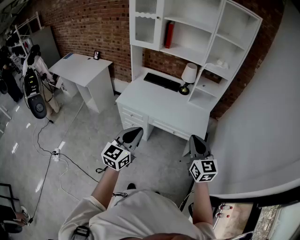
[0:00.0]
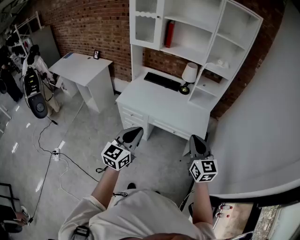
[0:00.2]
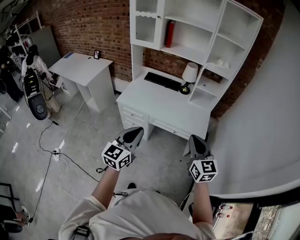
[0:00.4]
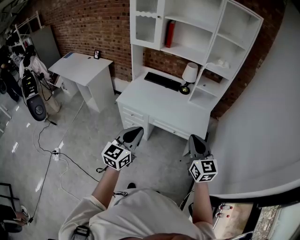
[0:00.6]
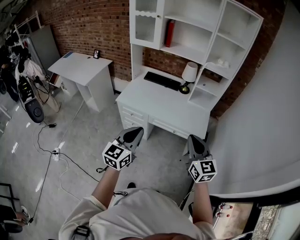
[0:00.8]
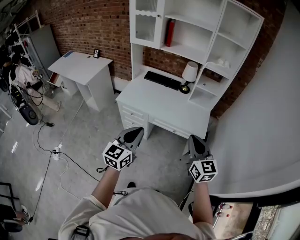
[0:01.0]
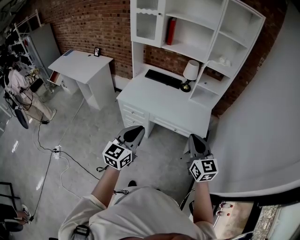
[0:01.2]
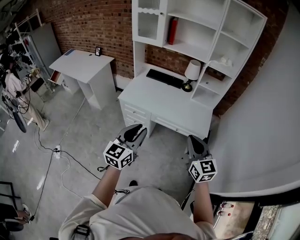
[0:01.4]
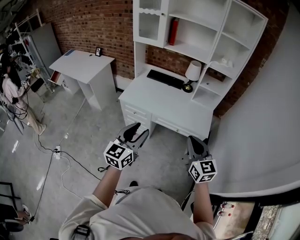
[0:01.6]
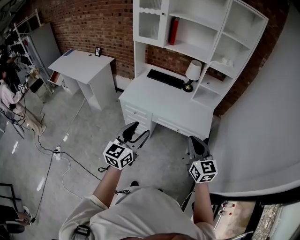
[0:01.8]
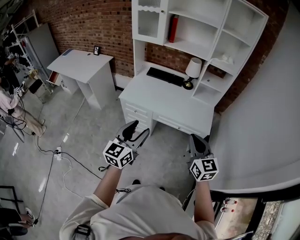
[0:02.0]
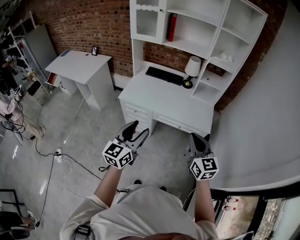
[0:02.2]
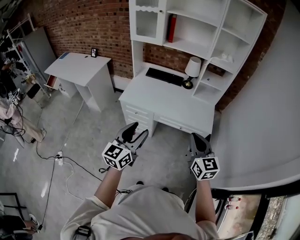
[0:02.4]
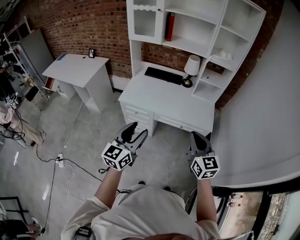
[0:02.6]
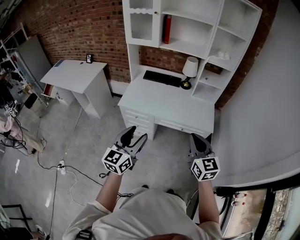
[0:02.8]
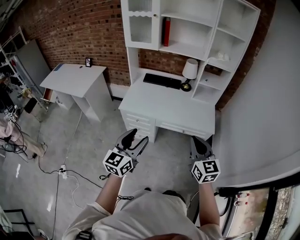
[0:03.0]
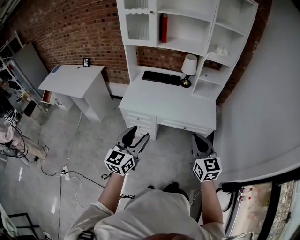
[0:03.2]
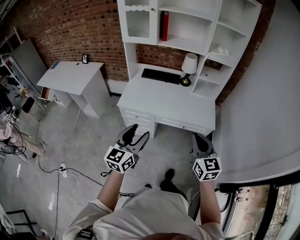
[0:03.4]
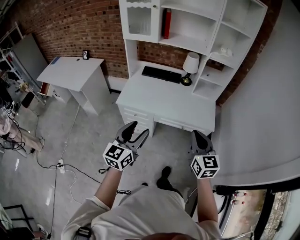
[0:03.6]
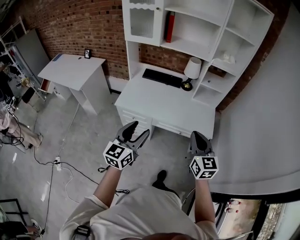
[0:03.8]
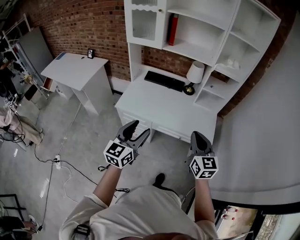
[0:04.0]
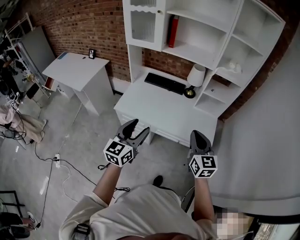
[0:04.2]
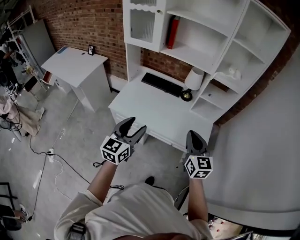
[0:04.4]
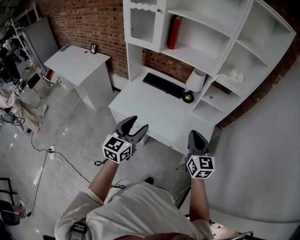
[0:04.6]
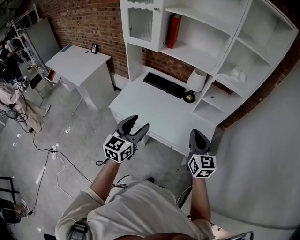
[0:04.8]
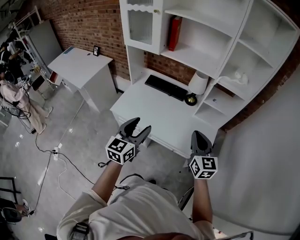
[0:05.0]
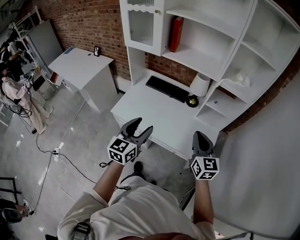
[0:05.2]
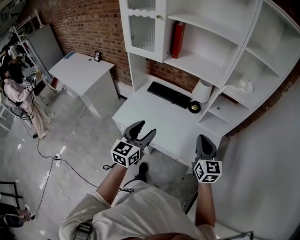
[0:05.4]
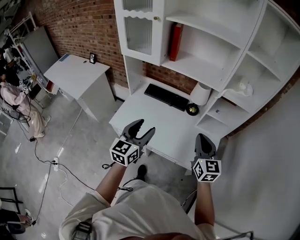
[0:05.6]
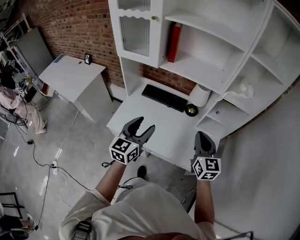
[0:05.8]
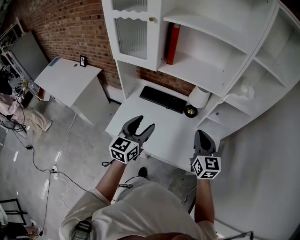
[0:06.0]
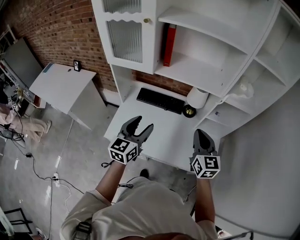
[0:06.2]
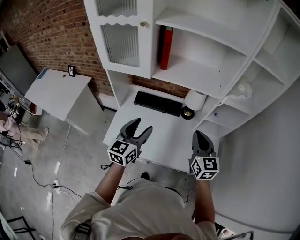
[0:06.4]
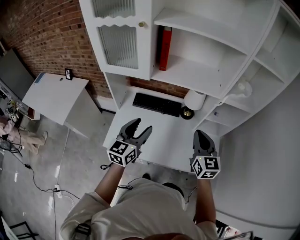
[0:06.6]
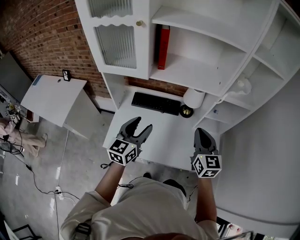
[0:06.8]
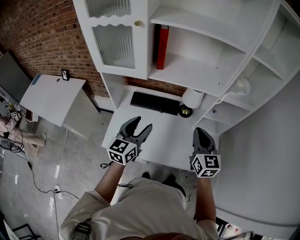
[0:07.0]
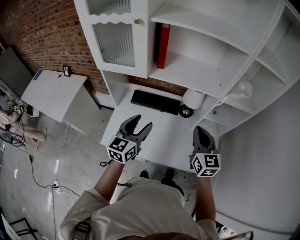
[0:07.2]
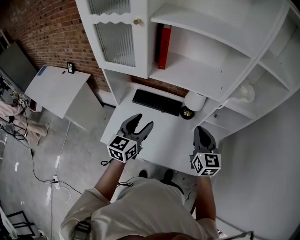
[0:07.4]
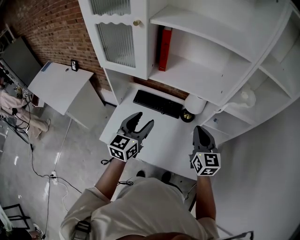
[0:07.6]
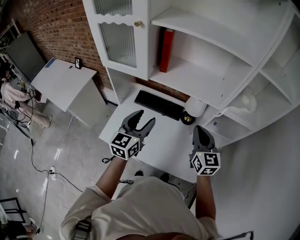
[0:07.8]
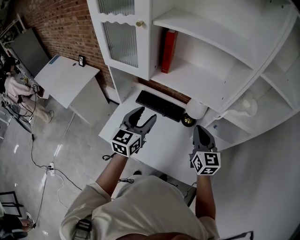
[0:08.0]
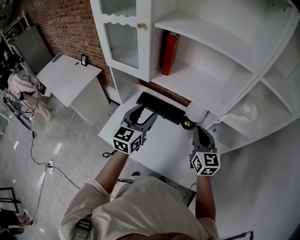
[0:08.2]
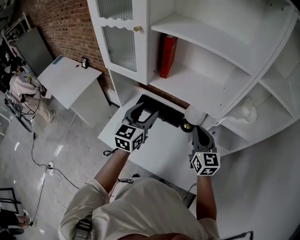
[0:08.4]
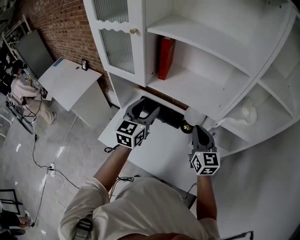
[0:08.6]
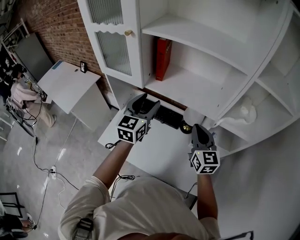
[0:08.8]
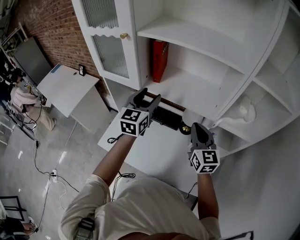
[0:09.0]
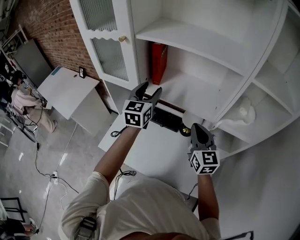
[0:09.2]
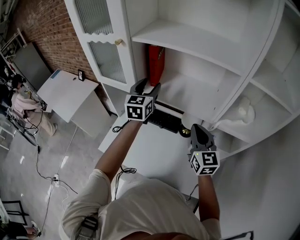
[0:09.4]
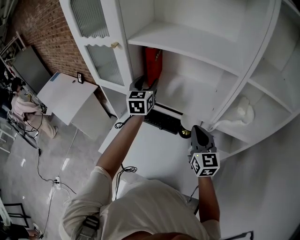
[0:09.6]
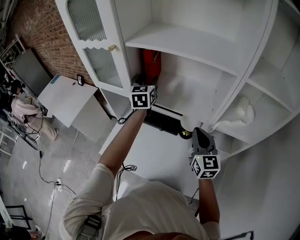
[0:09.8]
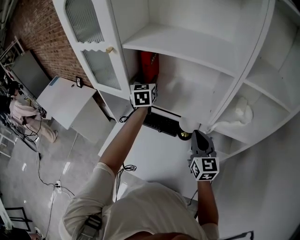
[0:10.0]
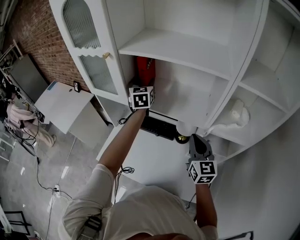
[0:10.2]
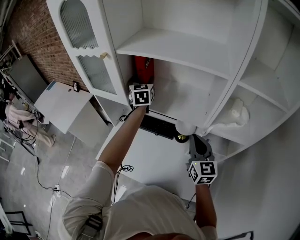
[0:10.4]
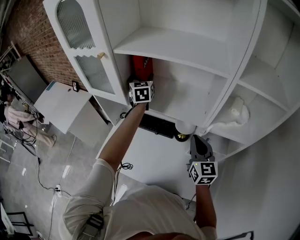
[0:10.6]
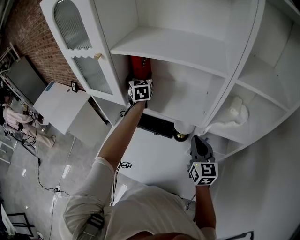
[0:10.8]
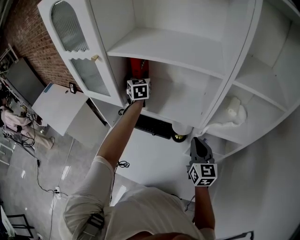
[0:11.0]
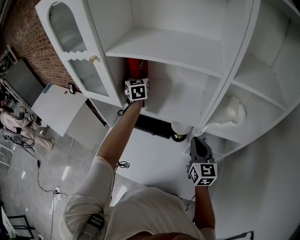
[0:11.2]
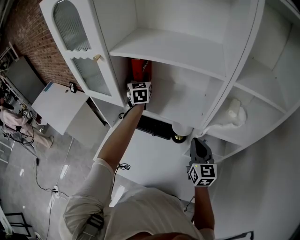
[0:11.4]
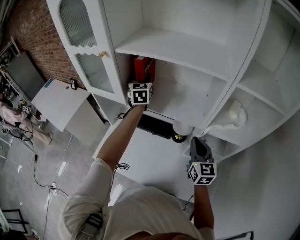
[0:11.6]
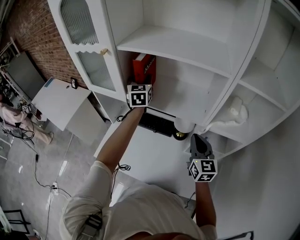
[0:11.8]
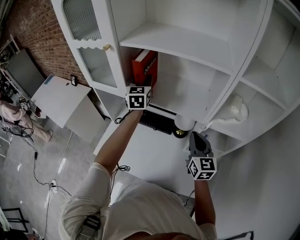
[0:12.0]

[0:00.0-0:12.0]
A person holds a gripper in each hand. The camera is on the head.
0.0 to 1.6 s: The left gripper opens up.
1.6 to 3.0 s: Both grippers move to the left, about 5 cm.
3.0 to 4.4 s: The two grippers go roughly 20 cm forward.
4.4 to 6.0 s: Both grippers travel together forward, some 25 cm.
6.0 to 7.6 s: The grippers both shift forward by approximately 10 cm.
7.6 to 9.0 s: The left gripper moves forward and upward, roughly 15 cm, while the right gripper moves forward, some 10 cm.
9.0 to 10.4 s: The left gripper heads forward, covering roughly 20 cm.
10.4 to 12.0 s: The left gripper closes its fingers.

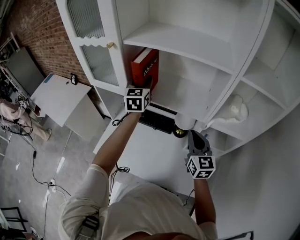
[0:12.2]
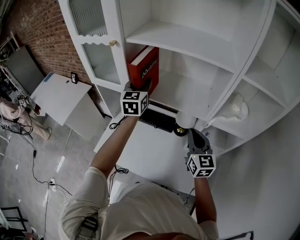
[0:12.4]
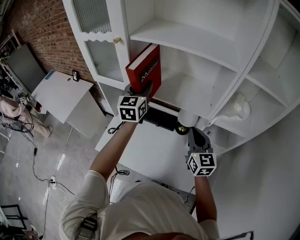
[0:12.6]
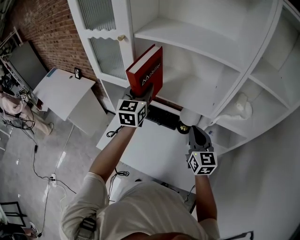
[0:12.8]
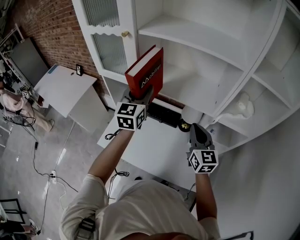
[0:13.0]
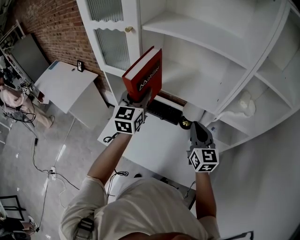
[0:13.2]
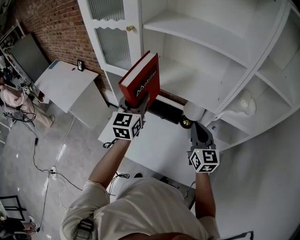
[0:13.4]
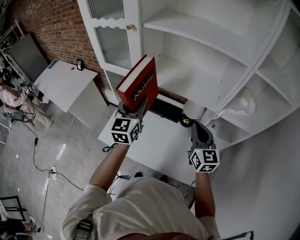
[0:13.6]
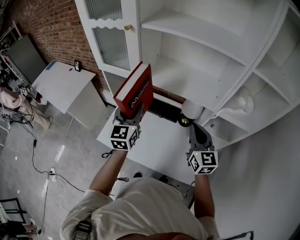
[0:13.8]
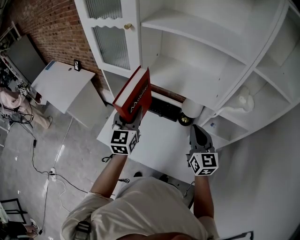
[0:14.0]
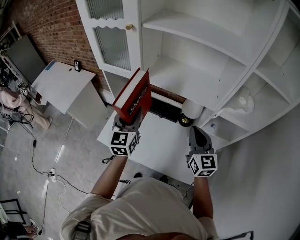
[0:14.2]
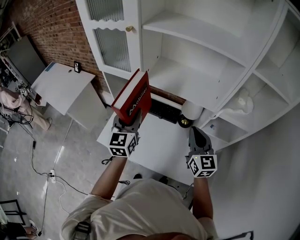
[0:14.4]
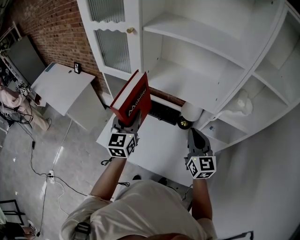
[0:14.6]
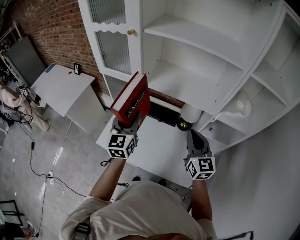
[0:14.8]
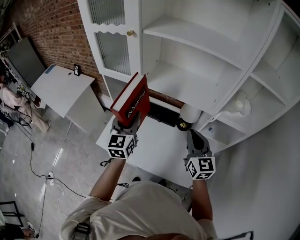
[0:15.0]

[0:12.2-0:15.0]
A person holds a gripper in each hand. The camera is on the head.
12.2 to 13.6 s: The right gripper ends up some 5 cm from where it was; the left gripper travels backward by approximately 15 cm.
13.6 to 15.0 s: The left gripper changes place by approximately 5 cm.

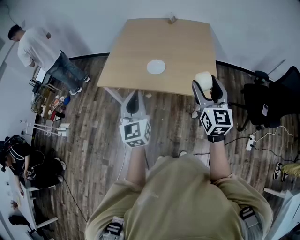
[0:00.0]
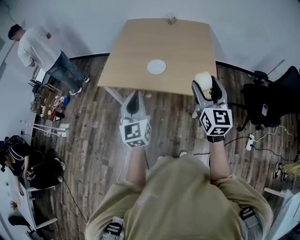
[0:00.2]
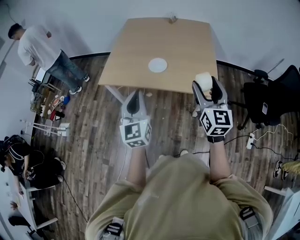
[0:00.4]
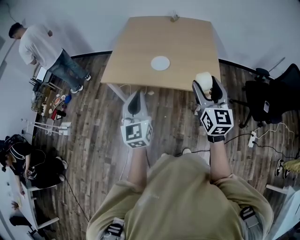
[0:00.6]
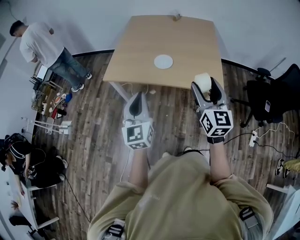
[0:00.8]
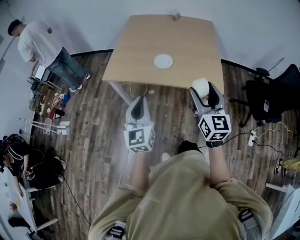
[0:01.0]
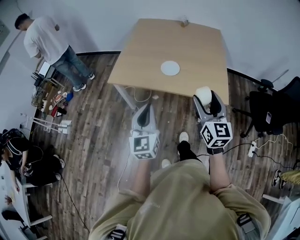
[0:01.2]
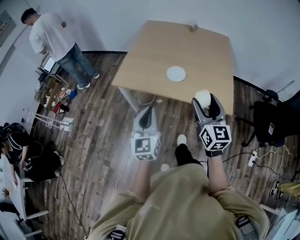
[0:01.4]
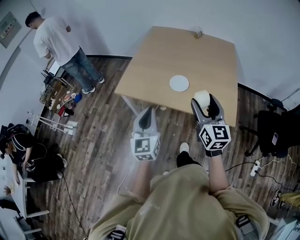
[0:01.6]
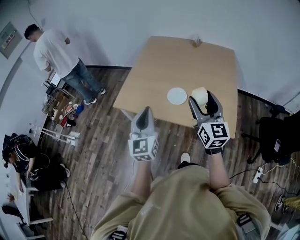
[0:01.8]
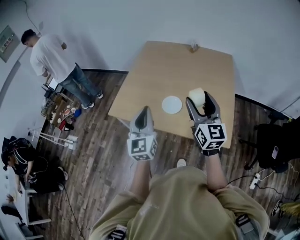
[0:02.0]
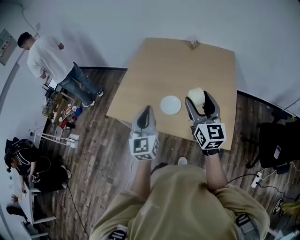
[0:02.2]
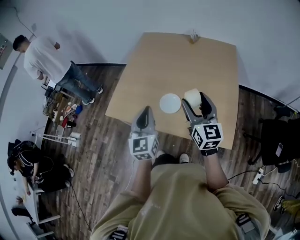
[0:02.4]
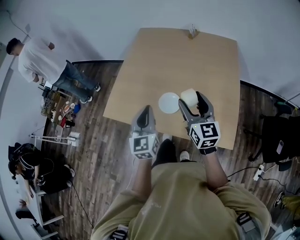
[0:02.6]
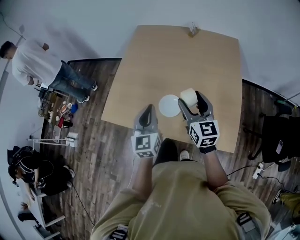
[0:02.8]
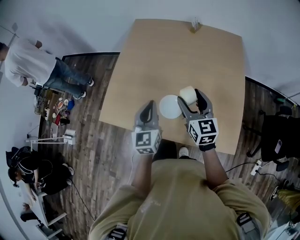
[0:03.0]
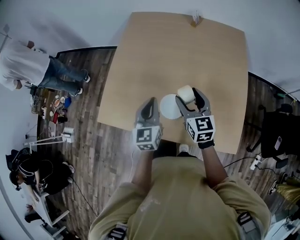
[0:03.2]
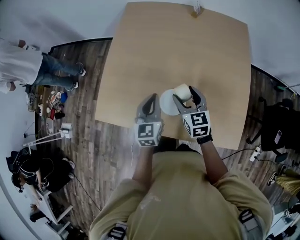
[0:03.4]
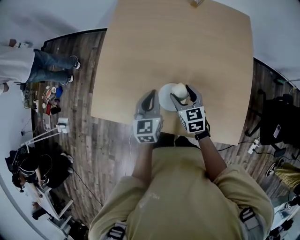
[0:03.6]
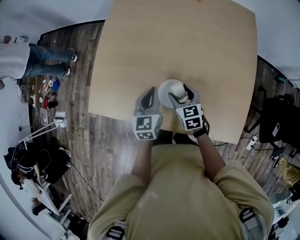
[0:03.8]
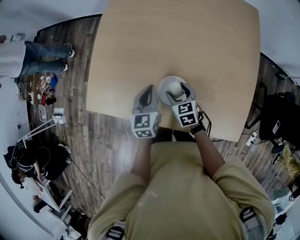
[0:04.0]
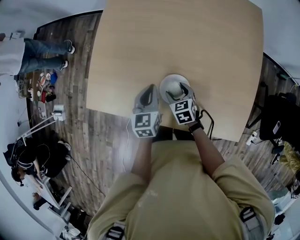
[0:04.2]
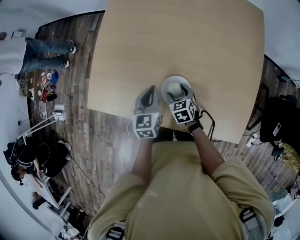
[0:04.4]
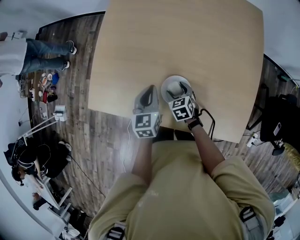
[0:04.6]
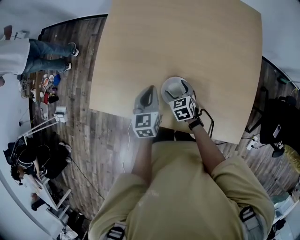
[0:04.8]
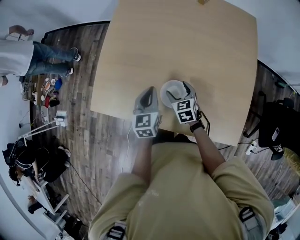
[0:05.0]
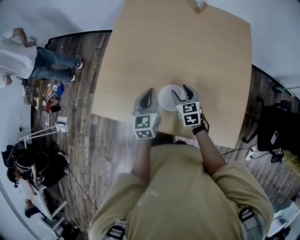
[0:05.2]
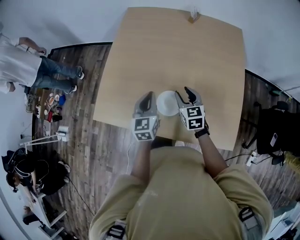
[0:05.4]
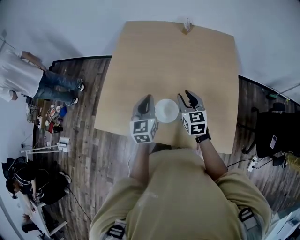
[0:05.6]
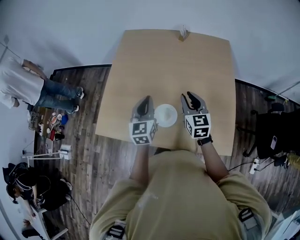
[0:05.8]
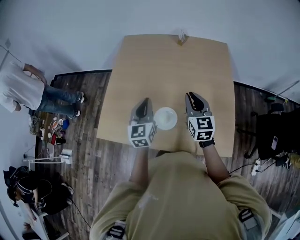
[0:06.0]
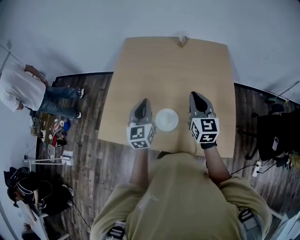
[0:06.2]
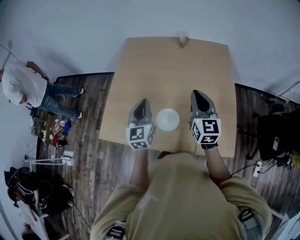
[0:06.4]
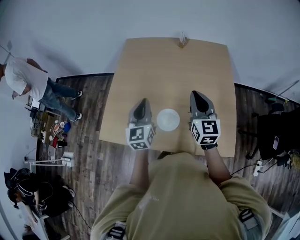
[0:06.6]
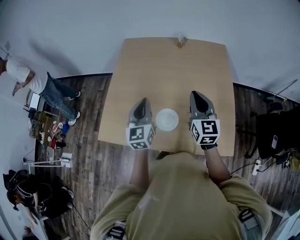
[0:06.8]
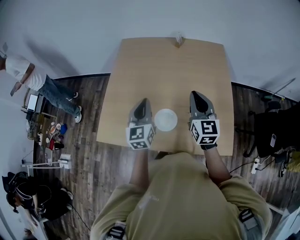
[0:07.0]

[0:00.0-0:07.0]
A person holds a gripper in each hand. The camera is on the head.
0.0 to 1.4 s: The right gripper shifts some 10 cm to the left, while the left gripper travels to the left by roughly 5 cm.
1.4 to 2.8 s: Both grippers travel together forward, about 35 cm.
2.8 to 4.2 s: The left gripper goes approximately 25 cm downward and forward, and turns by approximately 30 degrees. The right gripper moves downward, about 35 cm, and tilts its fingers roughly 40 degrees downward.
4.2 to 5.6 s: The right gripper moves upward and to the right, roughly 25 cm, turns by roughly 30 degrees, and closes its fingers, while the left gripper goes some 15 cm upward.
5.6 to 7.0 s: The left gripper shifts about 10 cm upward, while the right gripper travels upward by about 15 cm, changes its angle by roughly 20 degrees, and closes its fingers.

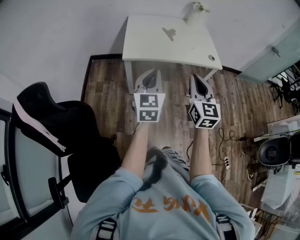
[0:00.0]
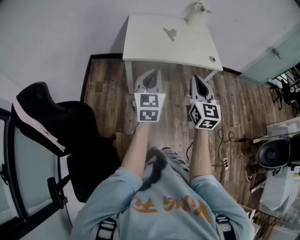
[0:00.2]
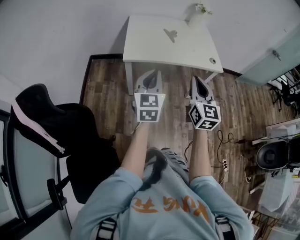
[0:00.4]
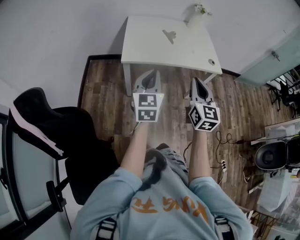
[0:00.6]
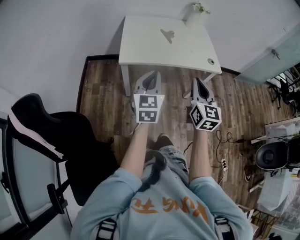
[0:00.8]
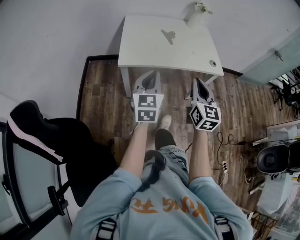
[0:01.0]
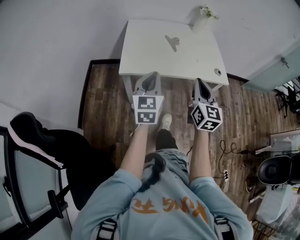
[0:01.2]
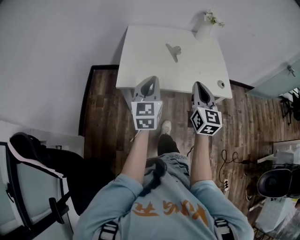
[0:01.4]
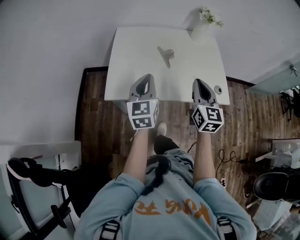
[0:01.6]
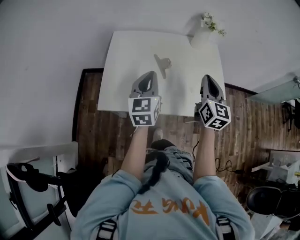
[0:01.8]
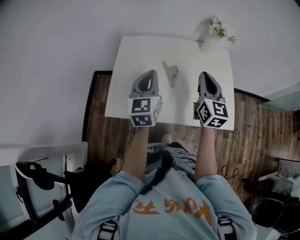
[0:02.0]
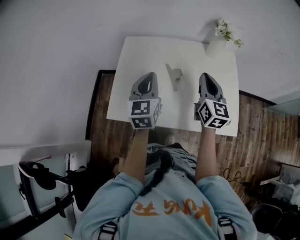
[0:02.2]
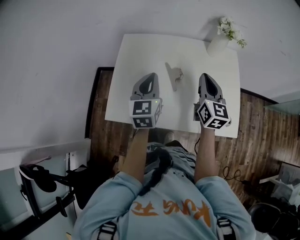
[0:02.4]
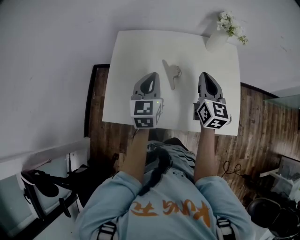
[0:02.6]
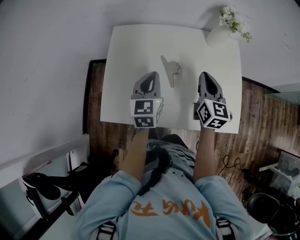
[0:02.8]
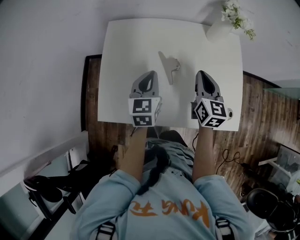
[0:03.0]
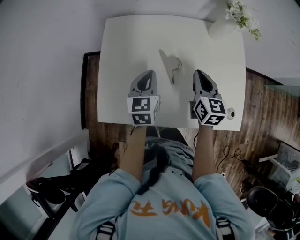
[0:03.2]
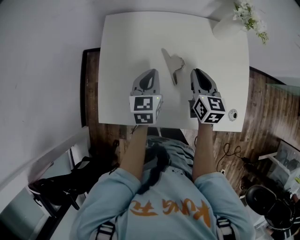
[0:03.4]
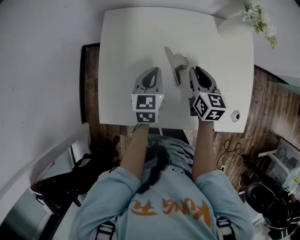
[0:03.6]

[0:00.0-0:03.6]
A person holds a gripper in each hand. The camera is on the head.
0.0 to 1.8 s: The pair of grippers is taken forward, about 40 cm.
1.8 to 3.6 s: The left gripper moves downward and forward, about 20 cm, and rotates approximately 20 degrees. Meanwhile the right gripper shifts roughly 25 cm downward, forward and to the left, and swivels some 30 degrees.
